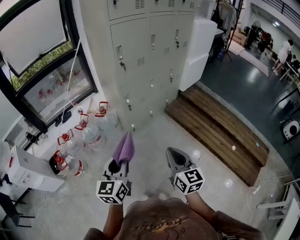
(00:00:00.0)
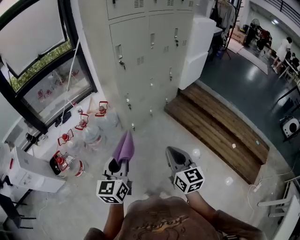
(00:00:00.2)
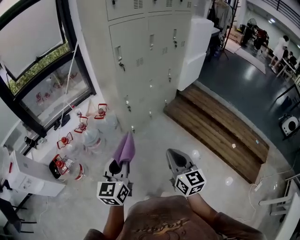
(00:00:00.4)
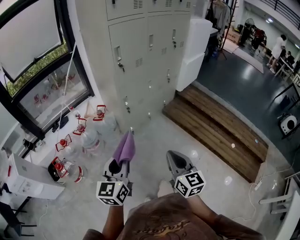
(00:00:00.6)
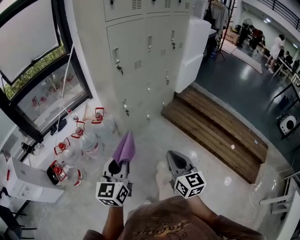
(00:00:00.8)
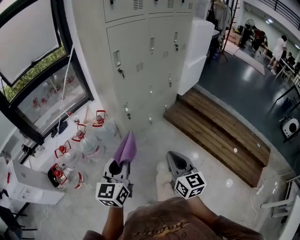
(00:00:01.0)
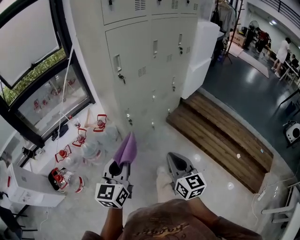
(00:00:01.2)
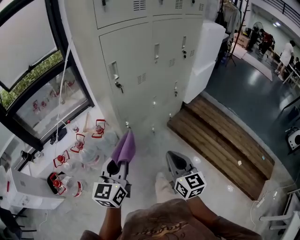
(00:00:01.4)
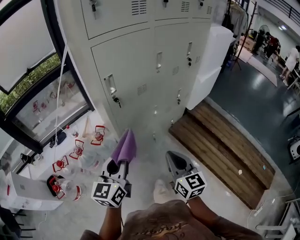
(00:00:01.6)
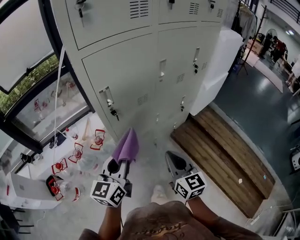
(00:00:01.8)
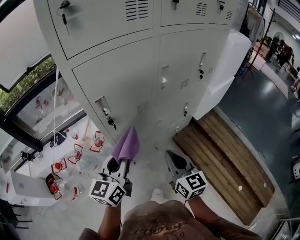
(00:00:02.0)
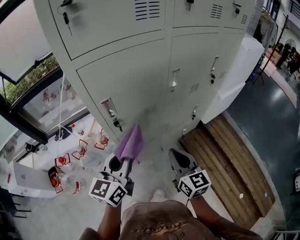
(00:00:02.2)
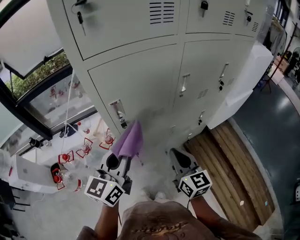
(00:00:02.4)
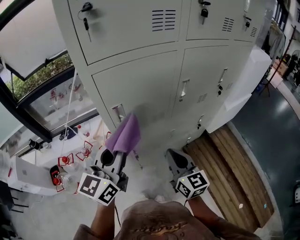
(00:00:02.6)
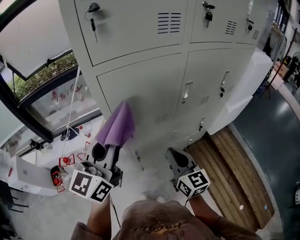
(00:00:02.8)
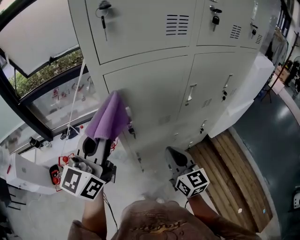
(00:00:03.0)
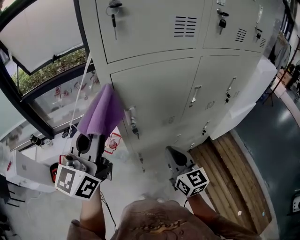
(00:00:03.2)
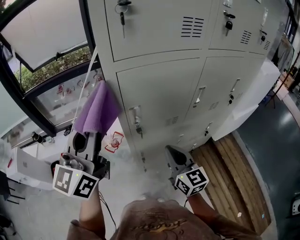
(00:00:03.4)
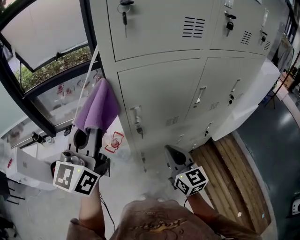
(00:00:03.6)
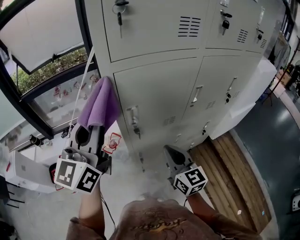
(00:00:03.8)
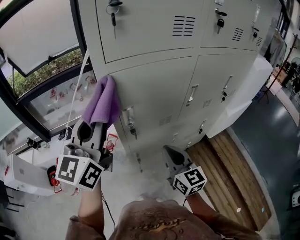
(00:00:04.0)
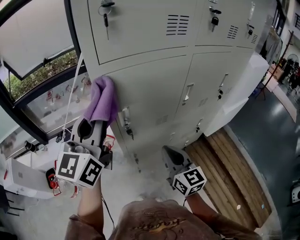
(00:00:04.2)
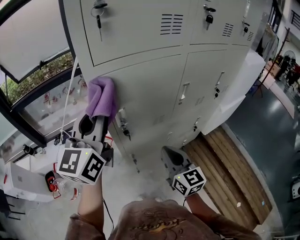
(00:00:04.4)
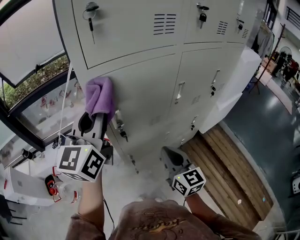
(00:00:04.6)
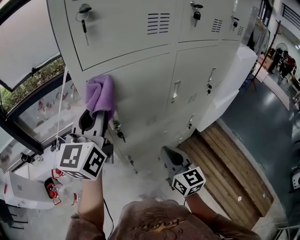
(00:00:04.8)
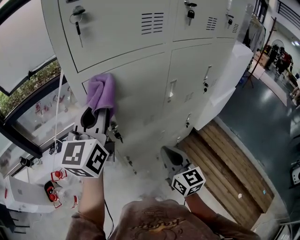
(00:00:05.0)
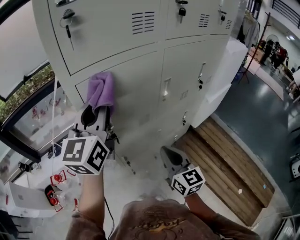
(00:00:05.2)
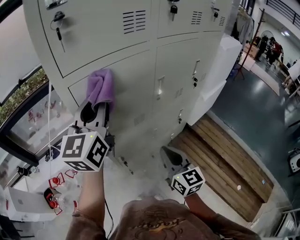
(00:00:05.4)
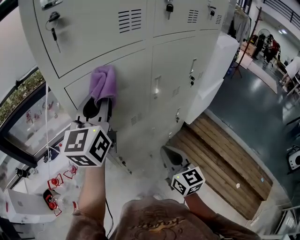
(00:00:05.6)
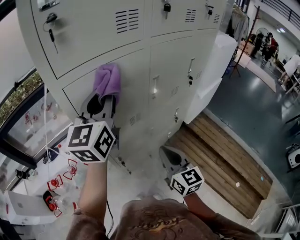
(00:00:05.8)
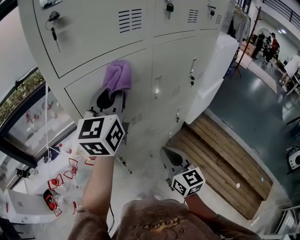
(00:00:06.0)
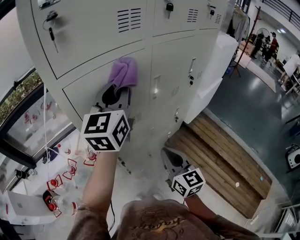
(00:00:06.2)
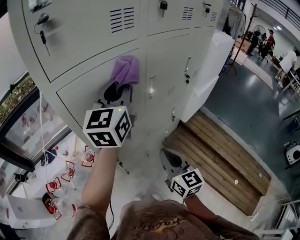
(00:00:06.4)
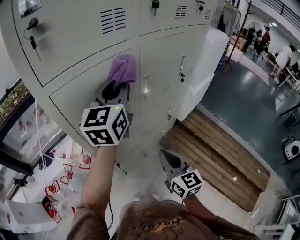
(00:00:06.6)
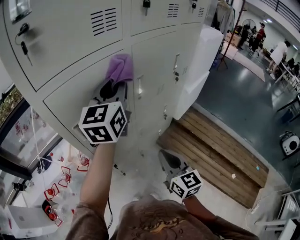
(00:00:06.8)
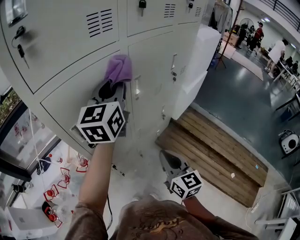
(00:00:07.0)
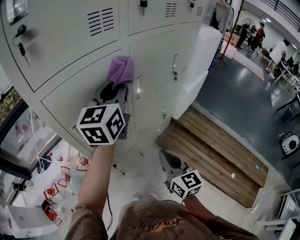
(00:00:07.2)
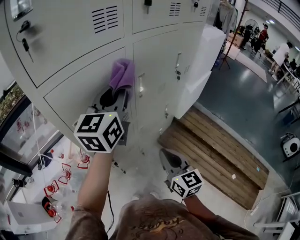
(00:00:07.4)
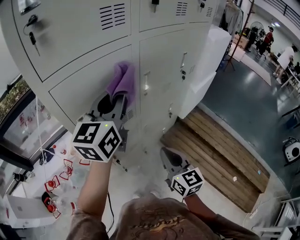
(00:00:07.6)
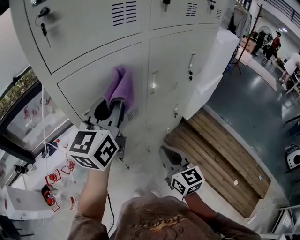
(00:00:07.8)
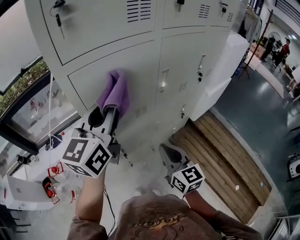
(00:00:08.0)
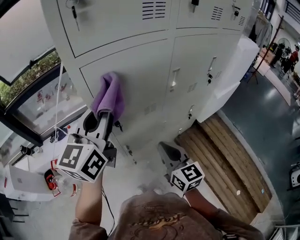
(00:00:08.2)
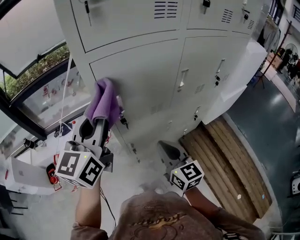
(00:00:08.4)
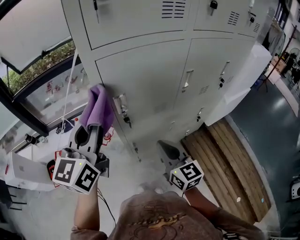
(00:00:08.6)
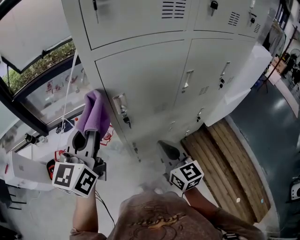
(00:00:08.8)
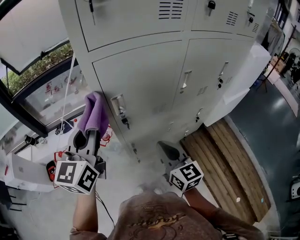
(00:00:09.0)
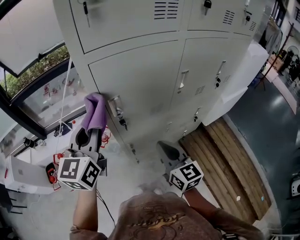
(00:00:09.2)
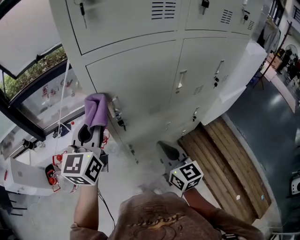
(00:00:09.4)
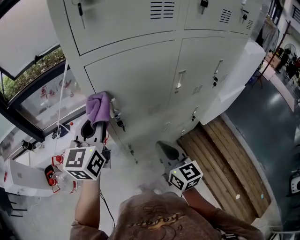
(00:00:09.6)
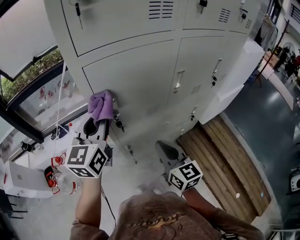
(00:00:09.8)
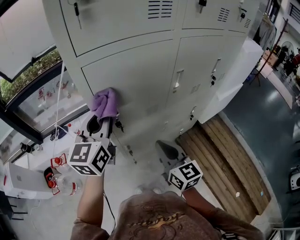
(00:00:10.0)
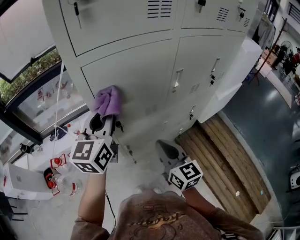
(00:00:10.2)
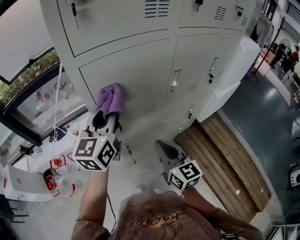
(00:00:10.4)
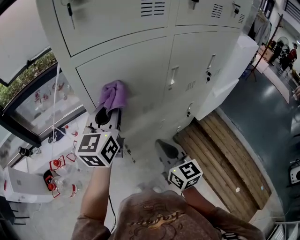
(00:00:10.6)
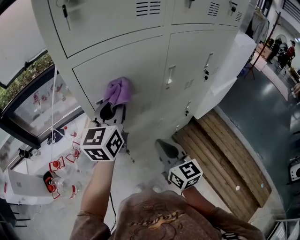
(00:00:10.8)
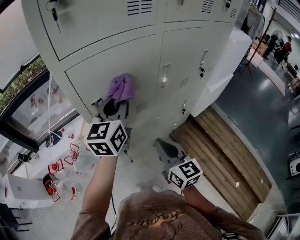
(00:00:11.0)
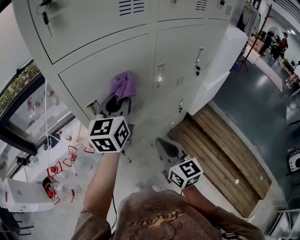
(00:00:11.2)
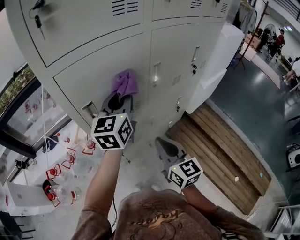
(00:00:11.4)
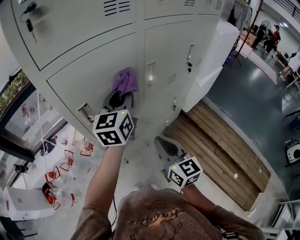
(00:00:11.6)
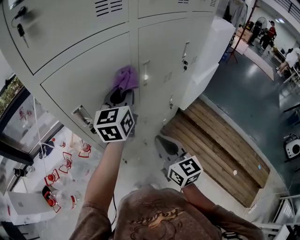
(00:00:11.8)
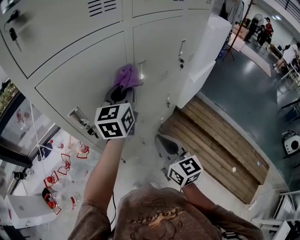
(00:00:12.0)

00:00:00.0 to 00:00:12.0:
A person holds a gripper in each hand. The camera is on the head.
00:00:00.0 to 00:00:01.6: The two grippers go approximately 30 cm forward.
00:00:01.6 to 00:00:03.0: The left gripper goes approximately 25 cm upward and forward, and changes its angle by about 20 degrees, while the right gripper travels forward by some 20 cm.
00:00:03.0 to 00:00:04.4: The left gripper shifts approximately 5 cm forward.
00:00:04.4 to 00:00:06.0: The left gripper shifts approximately 15 cm to the right and forward; the right gripper travels to the right by some 5 cm.
00:00:07.6 to 00:00:09.0: The right gripper travels to the left by some 10 cm, and swivels approximately 20 degrees. Meanwhile the left gripper shifts roughly 20 cm to the left and backward, and turns by some 30 degrees.
00:00:09.0 to 00:00:10.4: The left gripper moves to the right and forward, about 10 cm.
00:00:10.4 to 00:00:12.0: The right gripper goes some 10 cm to the right. The left gripper shifts roughly 20 cm to the right and forward.

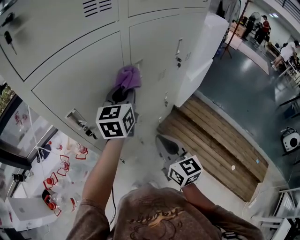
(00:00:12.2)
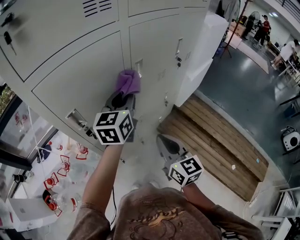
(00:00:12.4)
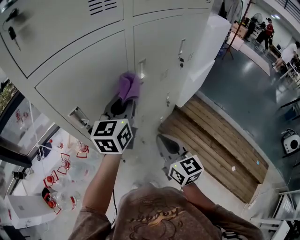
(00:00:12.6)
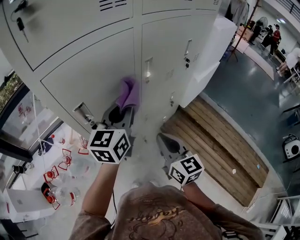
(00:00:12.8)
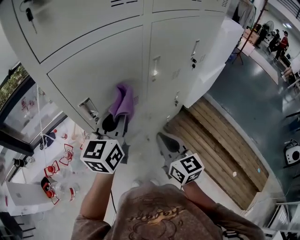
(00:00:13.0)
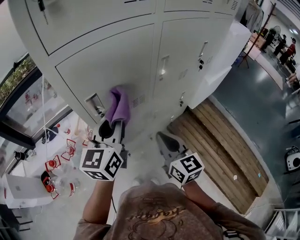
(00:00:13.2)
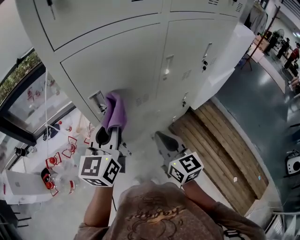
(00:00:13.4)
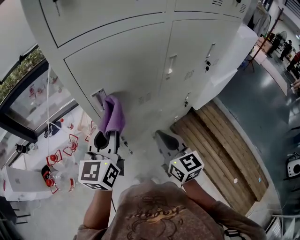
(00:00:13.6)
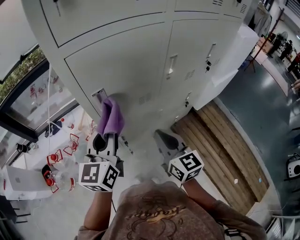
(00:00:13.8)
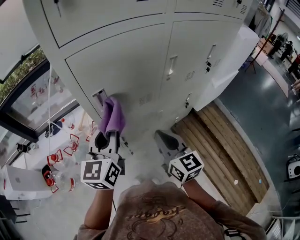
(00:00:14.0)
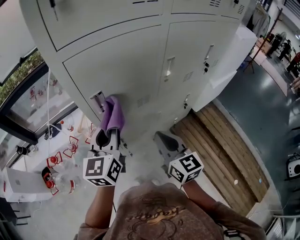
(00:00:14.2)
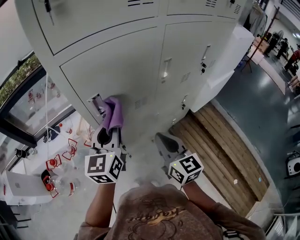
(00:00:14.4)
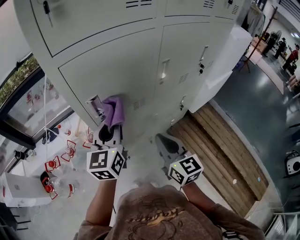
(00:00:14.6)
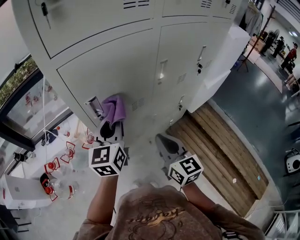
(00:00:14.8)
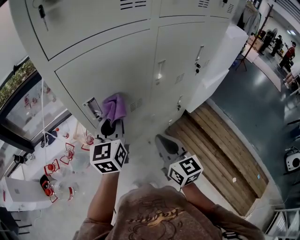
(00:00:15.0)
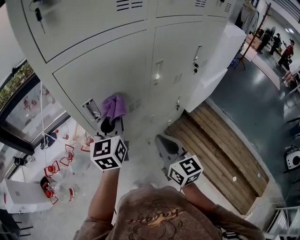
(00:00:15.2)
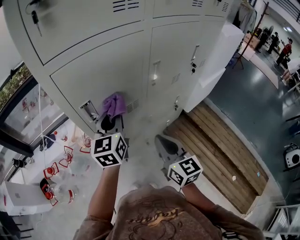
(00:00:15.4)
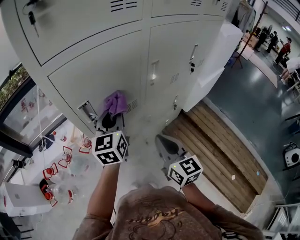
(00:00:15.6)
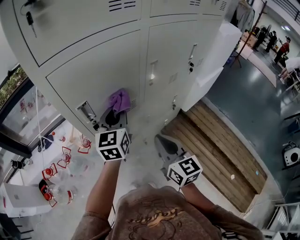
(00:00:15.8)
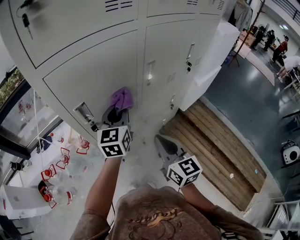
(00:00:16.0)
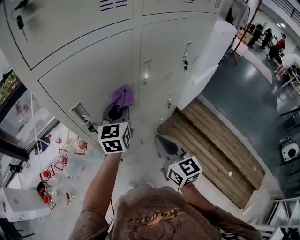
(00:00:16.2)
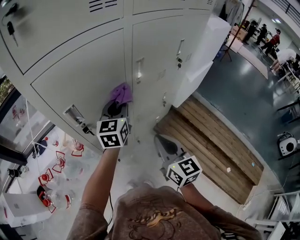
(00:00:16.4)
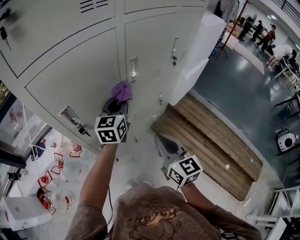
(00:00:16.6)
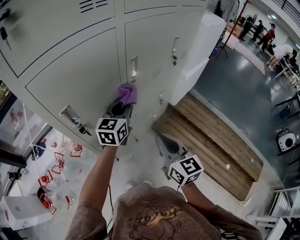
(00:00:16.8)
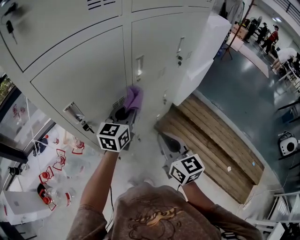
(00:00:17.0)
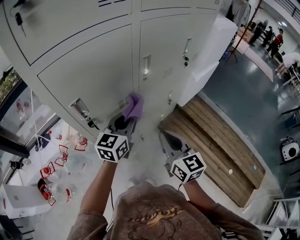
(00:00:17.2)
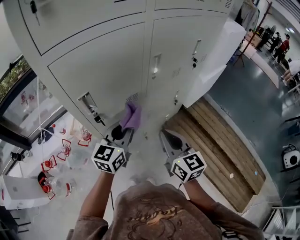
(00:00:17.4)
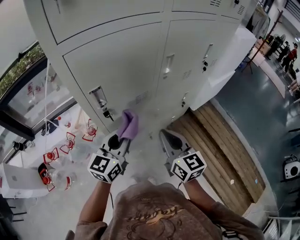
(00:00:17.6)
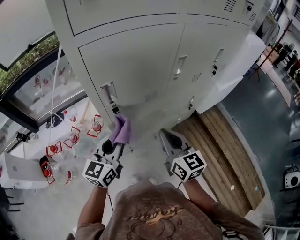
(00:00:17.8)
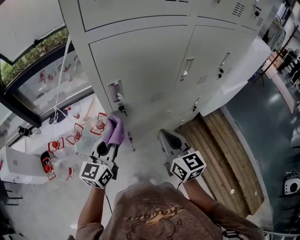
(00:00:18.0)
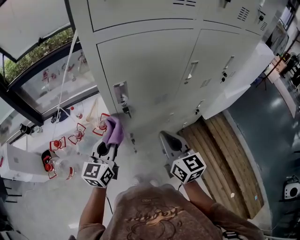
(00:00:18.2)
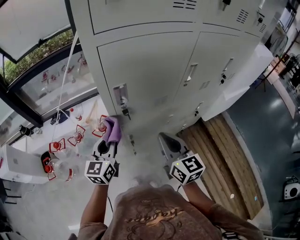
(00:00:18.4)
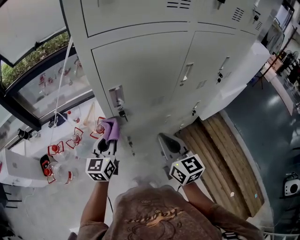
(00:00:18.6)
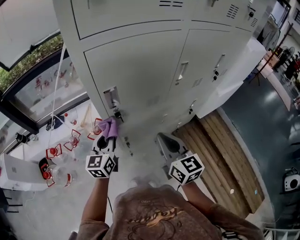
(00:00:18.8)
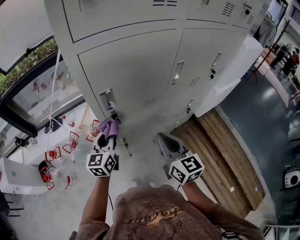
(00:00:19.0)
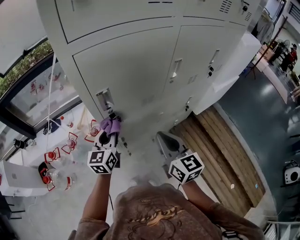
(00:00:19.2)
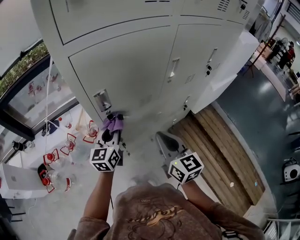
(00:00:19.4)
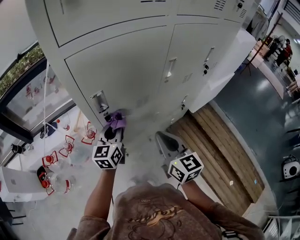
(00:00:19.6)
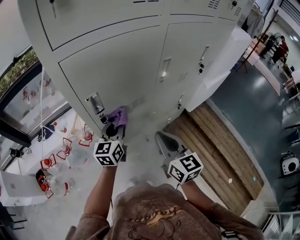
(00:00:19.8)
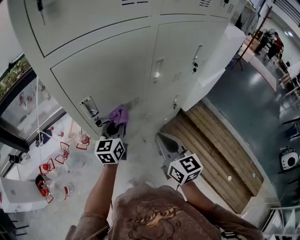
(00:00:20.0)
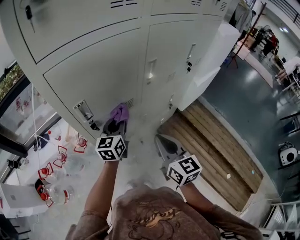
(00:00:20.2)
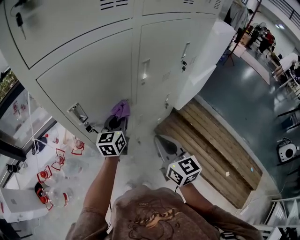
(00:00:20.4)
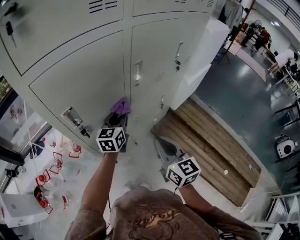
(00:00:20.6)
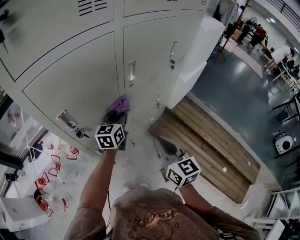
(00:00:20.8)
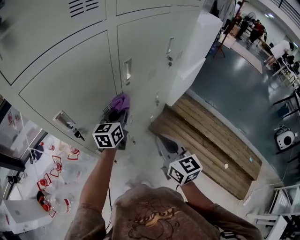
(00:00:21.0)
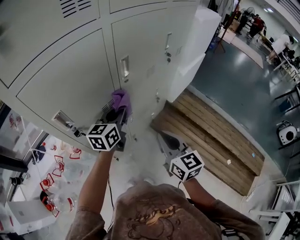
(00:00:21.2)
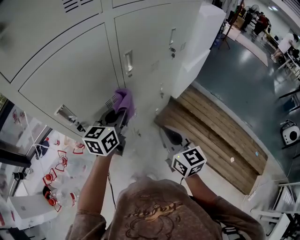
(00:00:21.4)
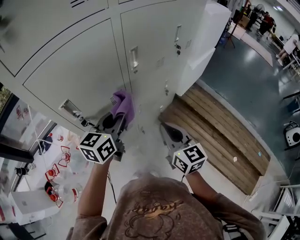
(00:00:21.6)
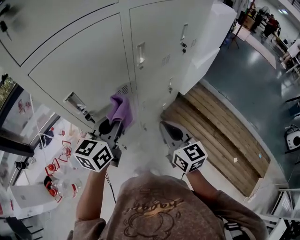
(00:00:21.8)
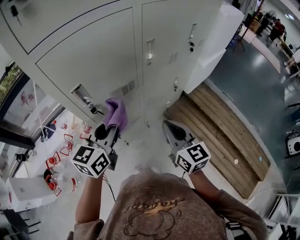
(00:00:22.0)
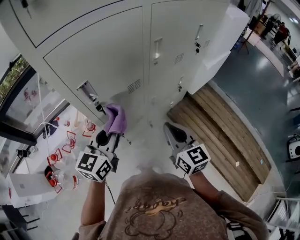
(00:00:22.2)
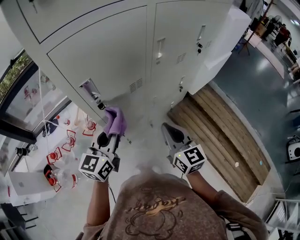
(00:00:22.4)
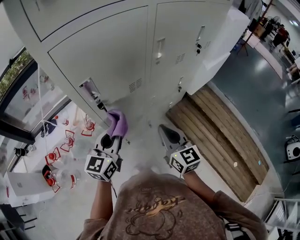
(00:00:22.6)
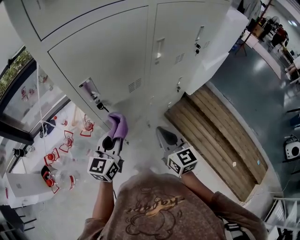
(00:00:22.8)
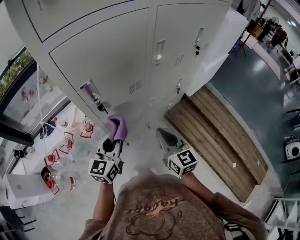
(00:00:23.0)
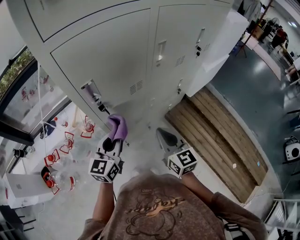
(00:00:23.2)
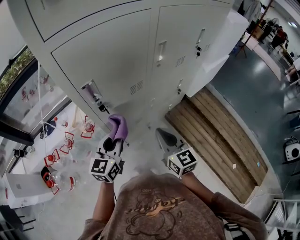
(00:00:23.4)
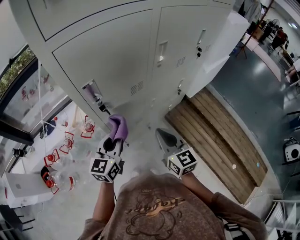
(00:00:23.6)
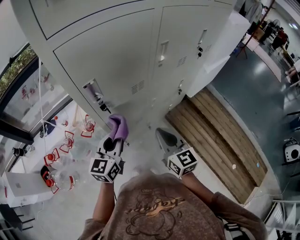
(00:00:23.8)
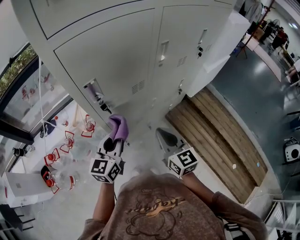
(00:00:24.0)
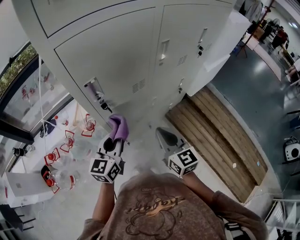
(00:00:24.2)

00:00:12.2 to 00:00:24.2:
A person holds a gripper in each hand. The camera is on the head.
00:00:12.2 to 00:00:13.8: The right gripper is displaced to the left by about 10 cm, while the left gripper shifts about 25 cm to the left and backward.
00:00:13.8 to 00:00:15.2: The left gripper shifts some 10 cm forward and to the right.
00:00:15.2 to 00:00:16.6: The left gripper shifts about 15 cm to the right and forward. Meanwhile the right gripper heads to the right, covering approximately 5 cm.
00:00:16.6 to 00:00:18.2: The left gripper travels to the left and backward by approximately 30 cm. Meanwhile the right gripper is displaced to the left by roughly 15 cm, and turns by about 20 degrees.
00:00:18.2 to 00:00:19.8: The left gripper goes approximately 15 cm to the right and forward, while the right gripper moves to the right, about 5 cm.
00:00:19.8 to 00:00:21.2: The two grippers go roughly 10 cm to the right. The left gripper changes its angle by some 20 degrees.
00:00:21.2 to 00:00:22.6: The right gripper is displaced to the left by roughly 10 cm. Meanwhile the left gripper moves backward and to the left, about 20 cm.
00:00:22.6 to 00:00:24.2: The grippers make only small movements.
